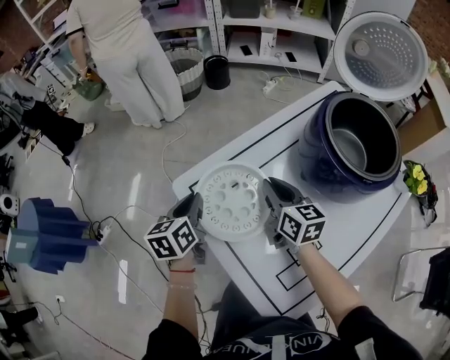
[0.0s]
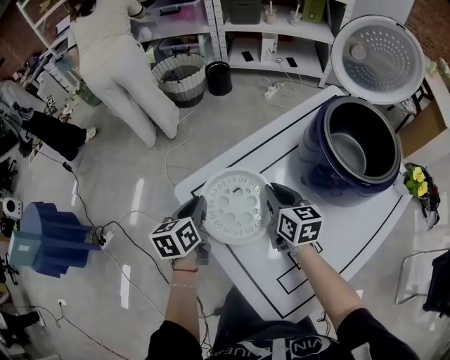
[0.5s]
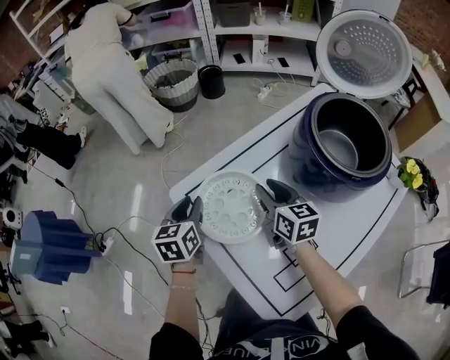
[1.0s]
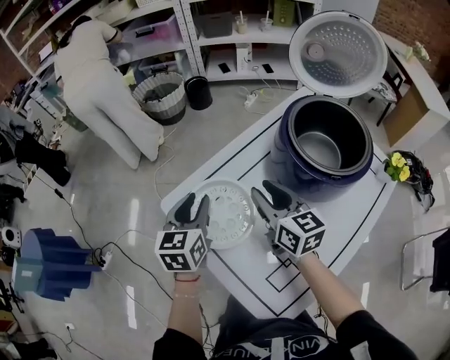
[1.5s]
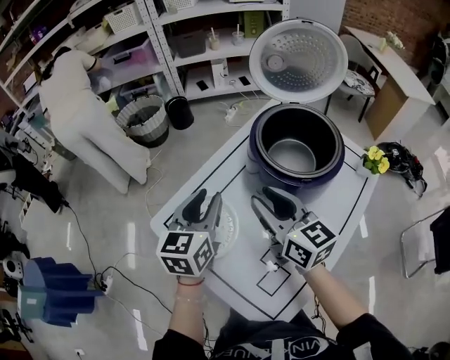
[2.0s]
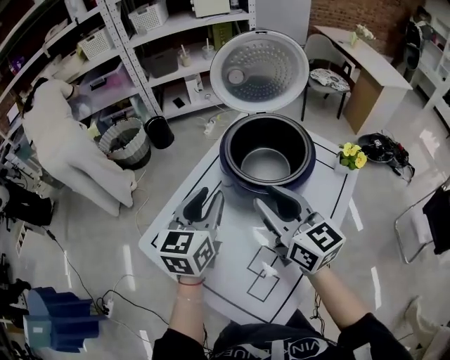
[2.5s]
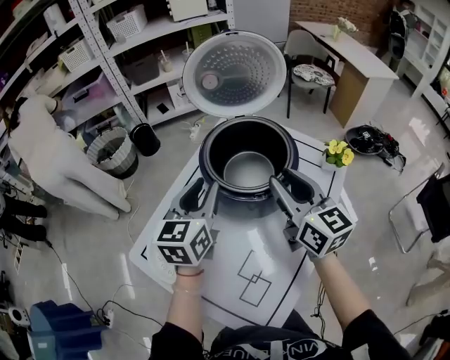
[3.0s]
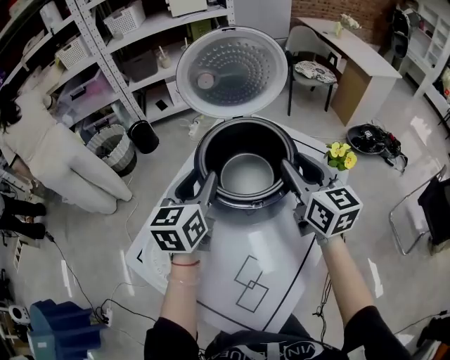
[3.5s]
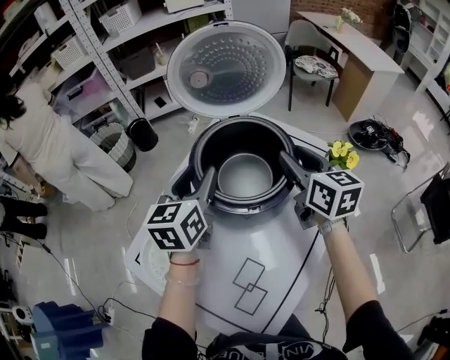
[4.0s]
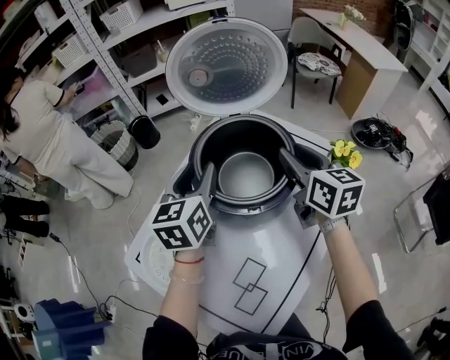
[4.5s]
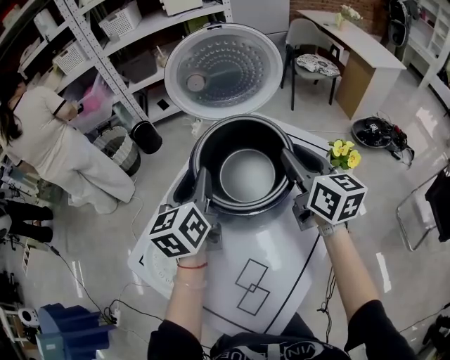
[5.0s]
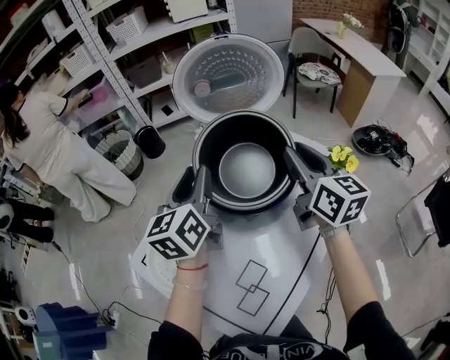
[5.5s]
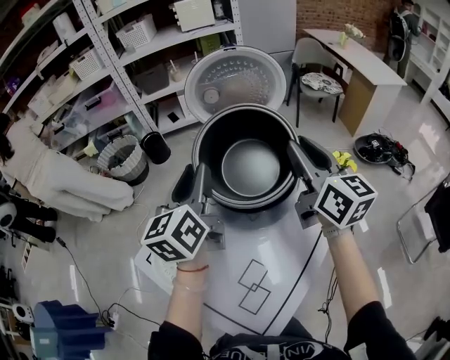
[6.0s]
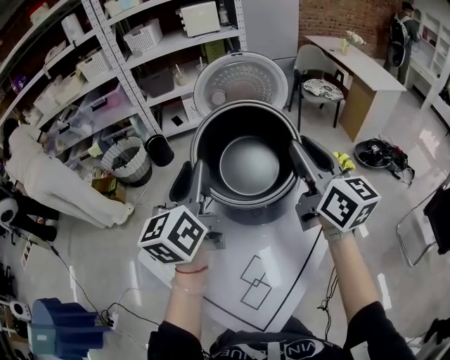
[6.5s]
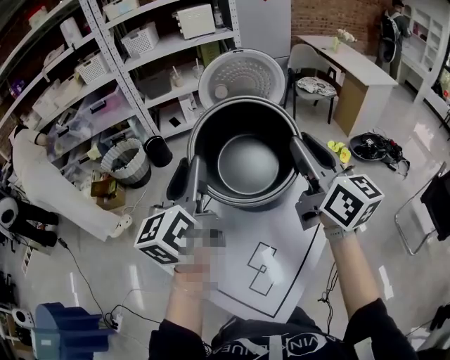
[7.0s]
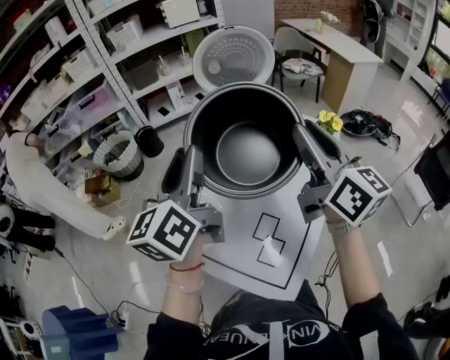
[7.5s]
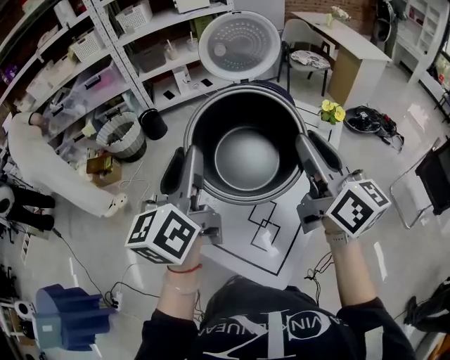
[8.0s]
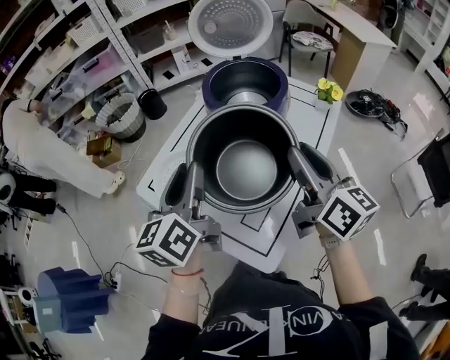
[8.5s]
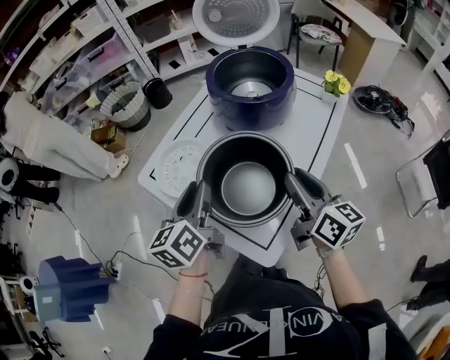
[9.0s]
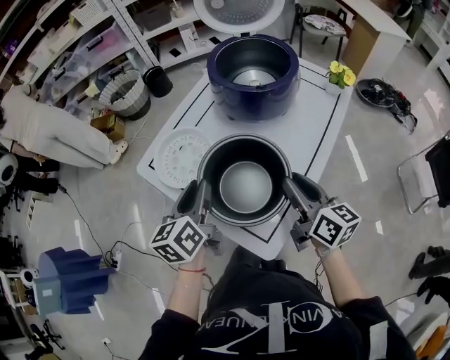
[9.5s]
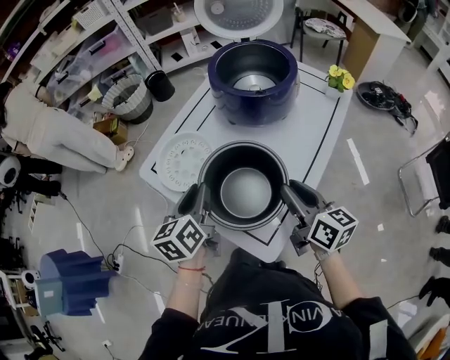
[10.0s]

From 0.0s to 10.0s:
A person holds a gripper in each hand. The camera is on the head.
From 0.0s to 2.0s: The left gripper moves to the right and upward, some 25 cm, and swivels about 30 degrees. Meanwhile the right gripper is displaced upward and to the right by roughly 15 cm.
From 2.0s to 4.0s: The grippers both shift to the right and forward by about 25 cm. The right gripper rotates some 20 degrees.
From 4.0s to 6.0s: Both grippers move upward, some 10 cm.
From 6.0s to 8.0s: Both grippers move backward, some 20 cm.
From 8.0s to 10.0s: The two grippers go some 25 cm downward and backward. The left gripper turns by roughly 30 degrees; the right gripper turns by roughly 30 degrees.

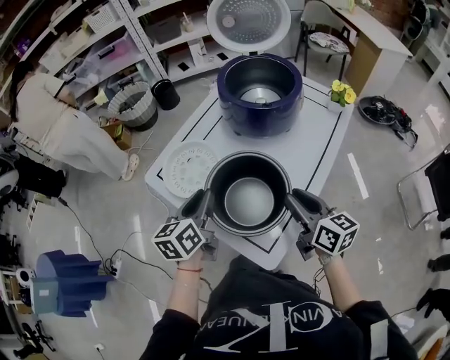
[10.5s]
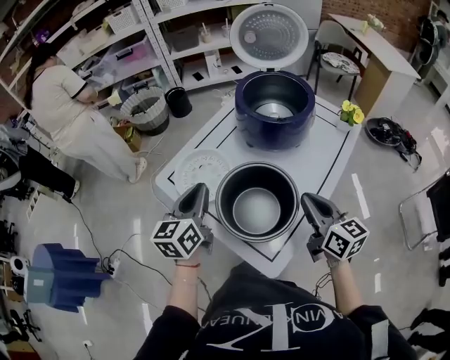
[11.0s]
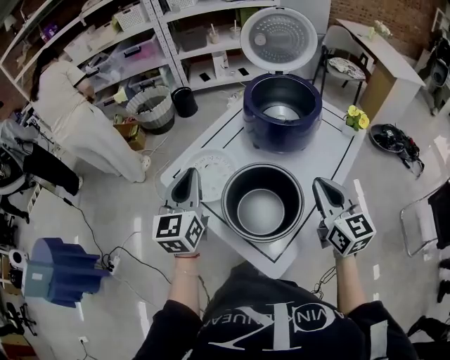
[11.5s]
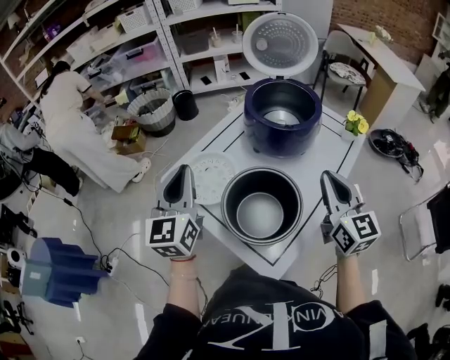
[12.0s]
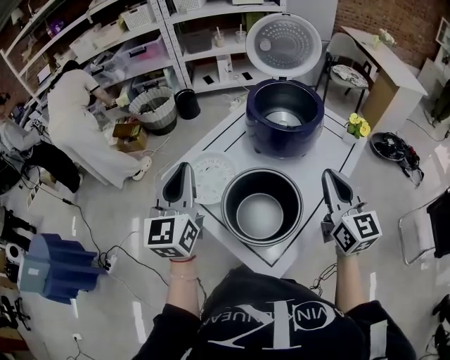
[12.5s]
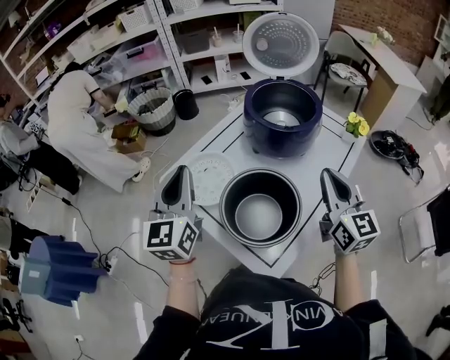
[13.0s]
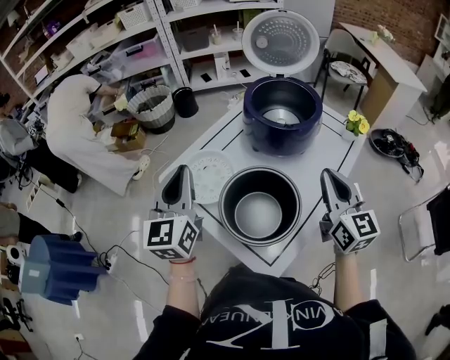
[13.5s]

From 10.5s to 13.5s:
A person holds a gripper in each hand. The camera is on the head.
From 10.5s to 12.0s: The right gripper travels upward and forward by about 15 cm, turns by some 30 degrees, and closes up. Meanwhile the left gripper shifts approximately 15 cm upward and to the left, and turns by approximately 40 degrees.
From 12.0s to 13.5s: The grippers stay close to where they were, moving slightly.

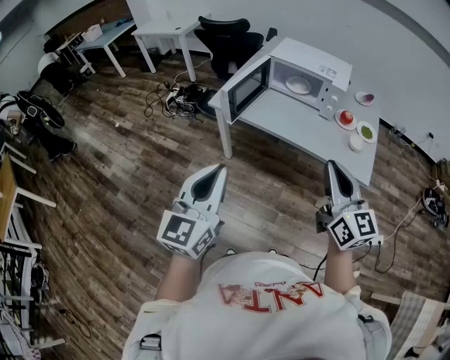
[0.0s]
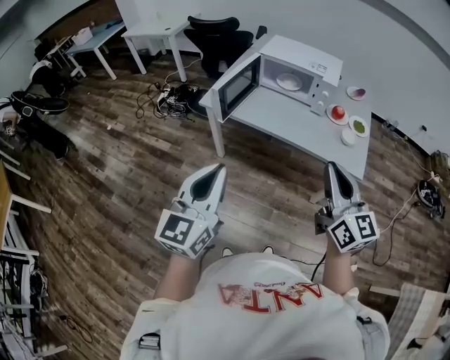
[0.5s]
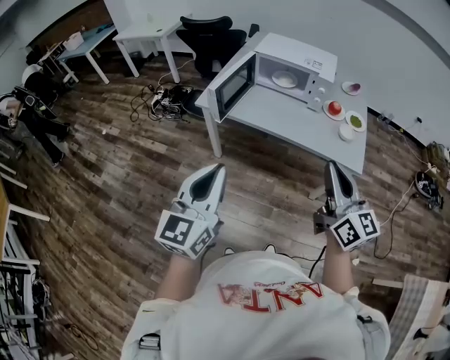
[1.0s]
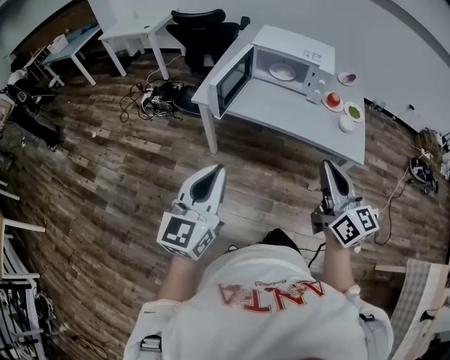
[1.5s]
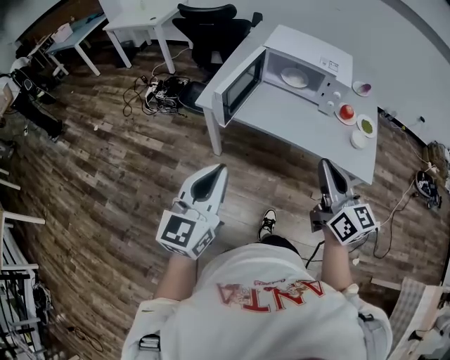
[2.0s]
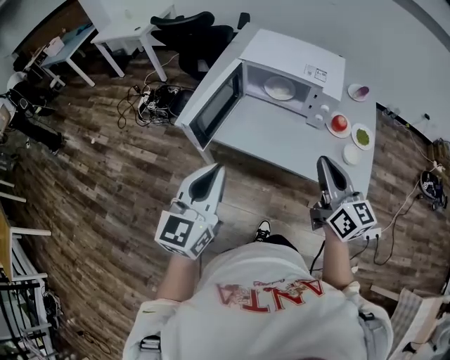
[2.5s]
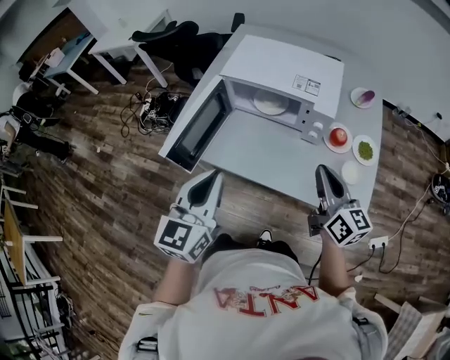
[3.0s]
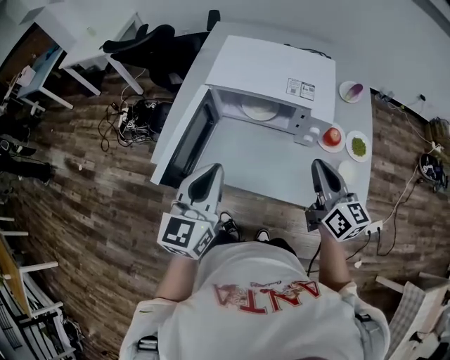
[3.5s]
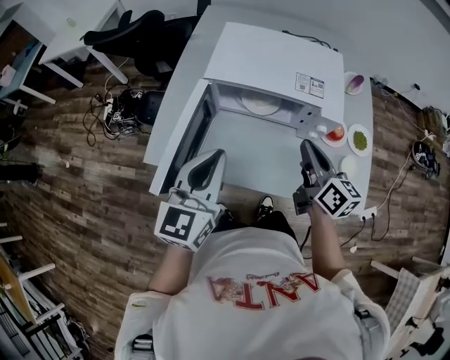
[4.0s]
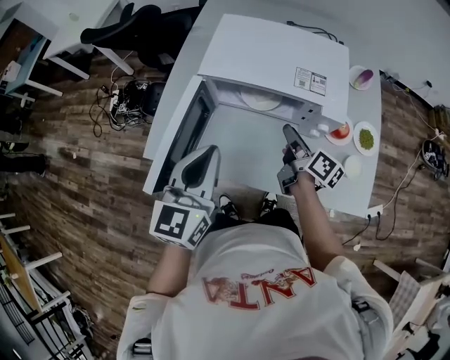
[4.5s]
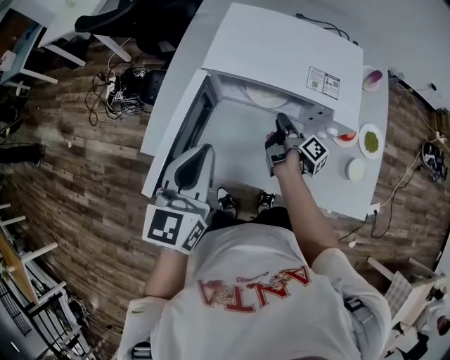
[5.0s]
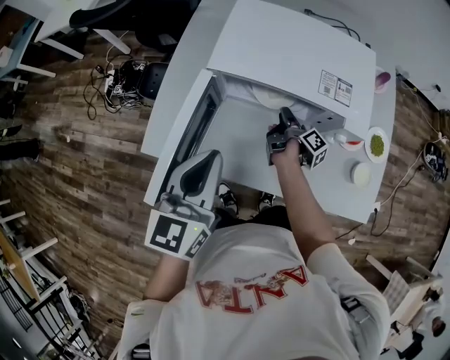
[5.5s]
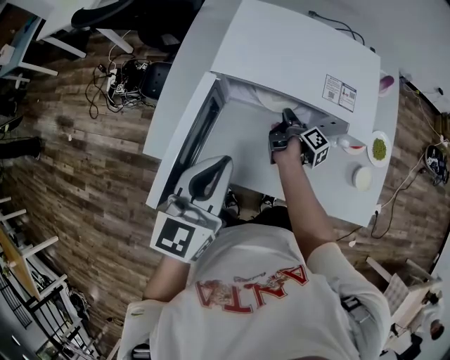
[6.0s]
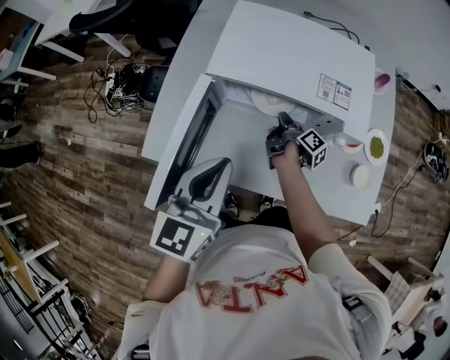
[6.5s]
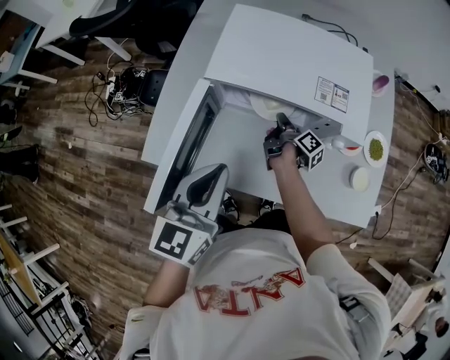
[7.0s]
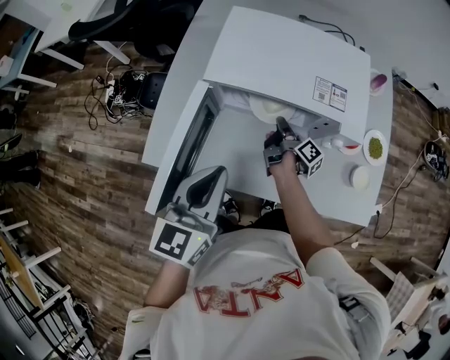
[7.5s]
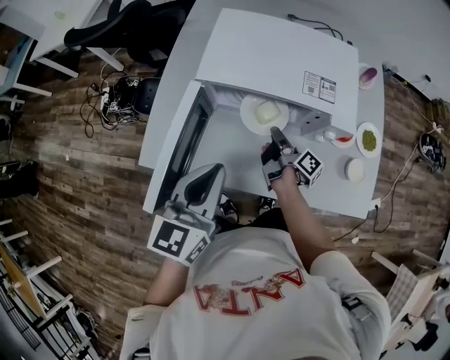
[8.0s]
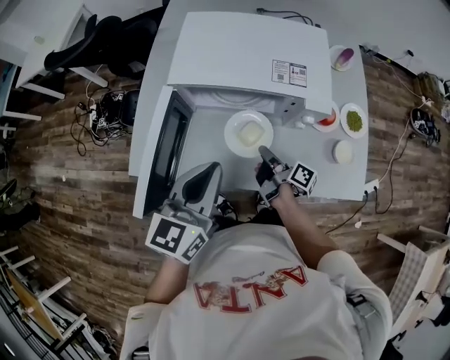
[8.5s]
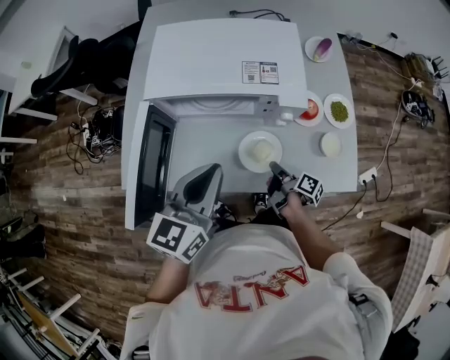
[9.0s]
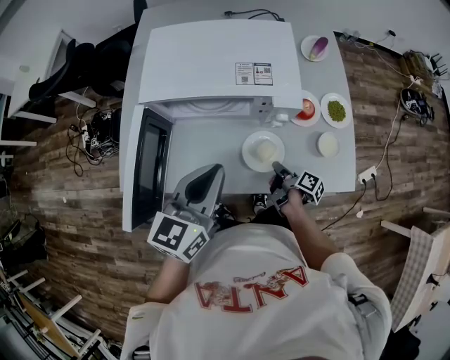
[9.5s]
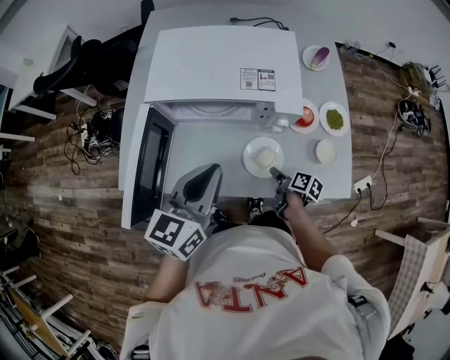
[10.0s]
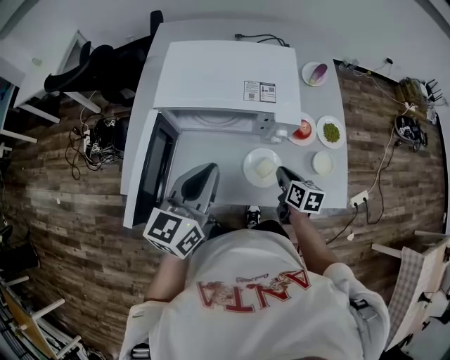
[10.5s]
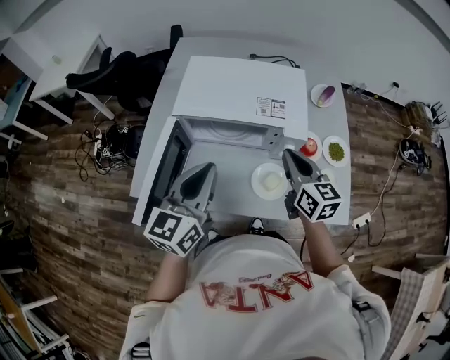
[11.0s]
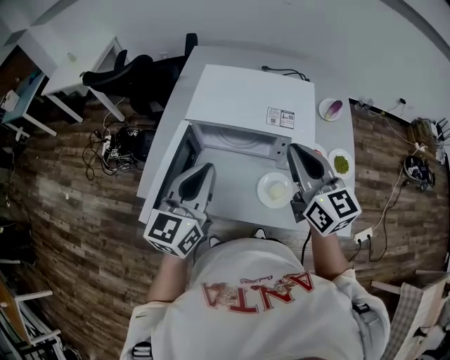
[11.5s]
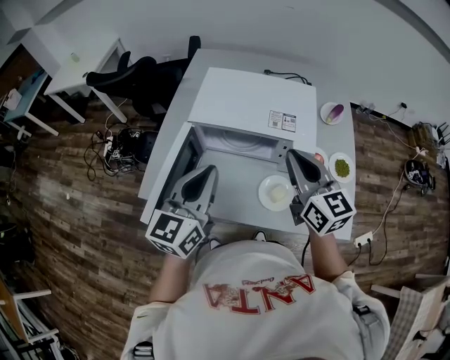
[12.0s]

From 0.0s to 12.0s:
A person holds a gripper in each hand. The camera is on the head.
From 0.0s to 2.0s: The left gripper moves forward, approximately 10 cm. The right gripper shifts some 10 cm forward, to the left and downward.
From 2.0s to 4.0s: Both grippers move forward, some 35 cm. The right gripper swivels approximately 20 degrees.
From 4.0s to 6.0s: The right gripper is displaced downward and forward by some 30 cm, and twists some 60 degrees clockwise, seen from behind, while the left gripper shifts by some 5 cm.
From 6.0s to 8.0s: The right gripper heads backward, covering some 5 cm.
From 8.0s to 10.0s: The right gripper goes roughly 20 cm to the right, backward and downward, angles its fingers downward, by about 30 degrees, and opens, while the left gripper is displaced to the right by some 10 cm.
From 10.0s to 12.0s: The left gripper travels upward and to the left by some 10 cm. The right gripper is displaced upward by some 40 cm, twists roughly 70 degrees counterclockwise, seen from behind, and closes up.

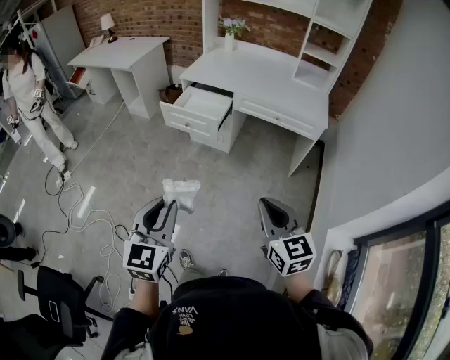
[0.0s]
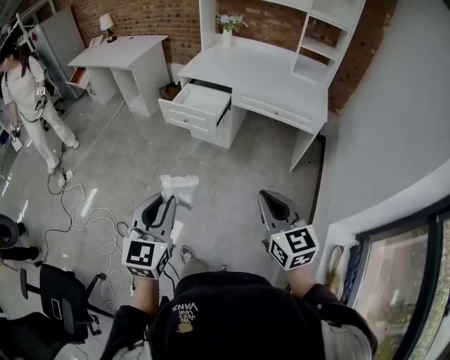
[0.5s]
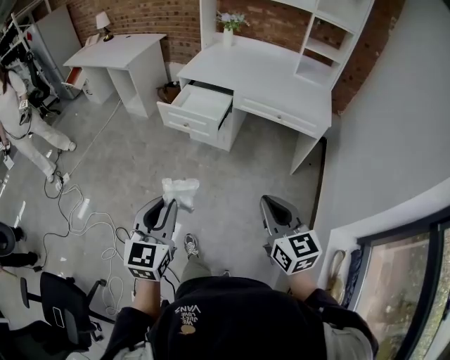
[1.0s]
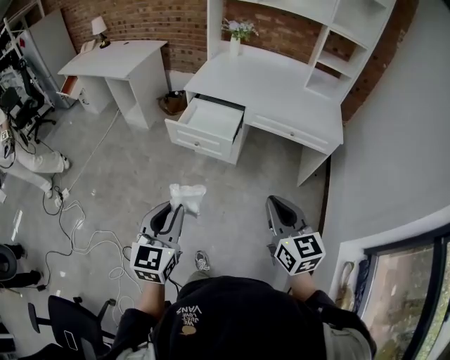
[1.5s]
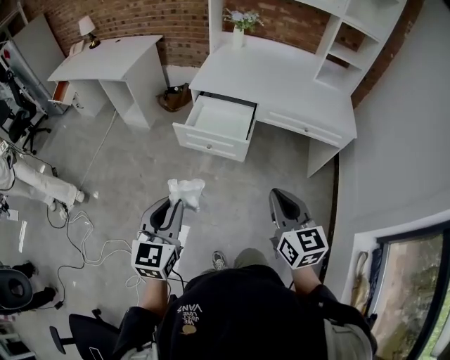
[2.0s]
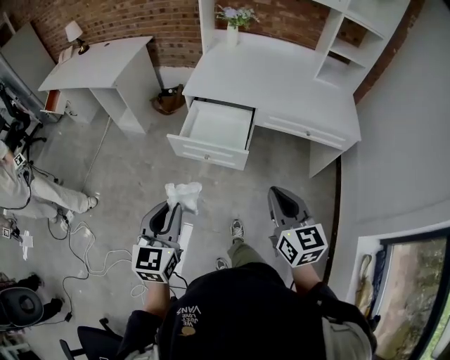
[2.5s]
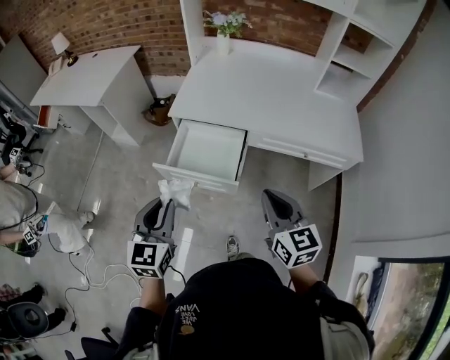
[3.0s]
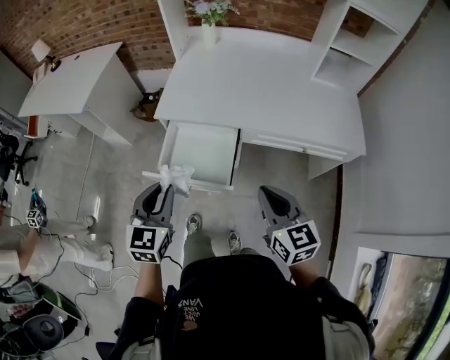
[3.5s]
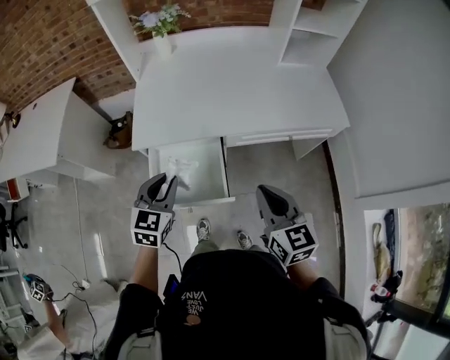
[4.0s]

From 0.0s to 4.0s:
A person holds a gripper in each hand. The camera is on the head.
From 0.0s to 2.0s: The two grippers go roughly 30 cm forward and to the left.
From 2.0s to 4.0s: Both grippers move forward, approximately 40 cm. The left gripper turns by some 30 degrees.
